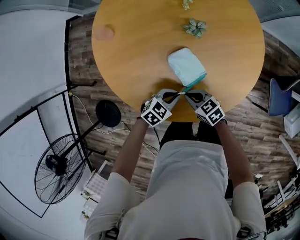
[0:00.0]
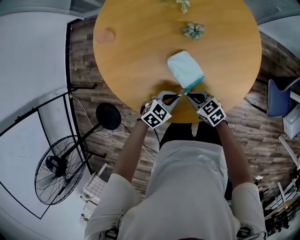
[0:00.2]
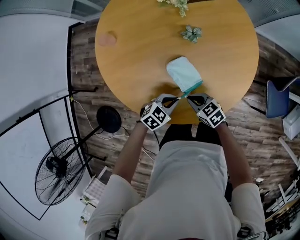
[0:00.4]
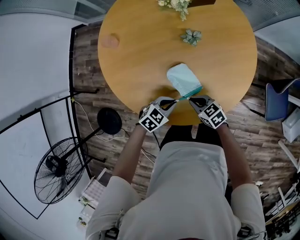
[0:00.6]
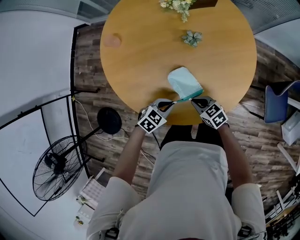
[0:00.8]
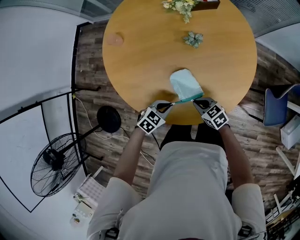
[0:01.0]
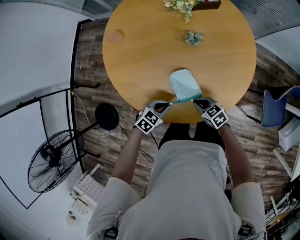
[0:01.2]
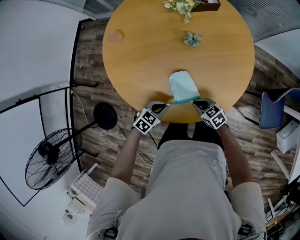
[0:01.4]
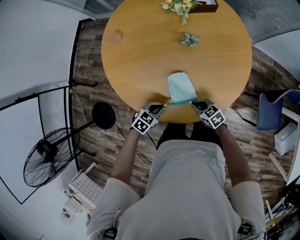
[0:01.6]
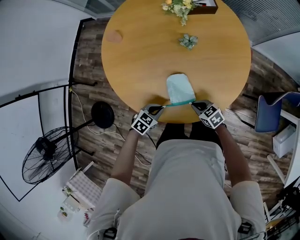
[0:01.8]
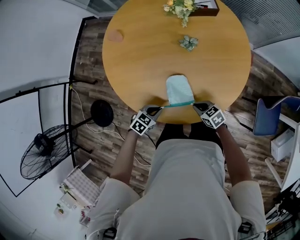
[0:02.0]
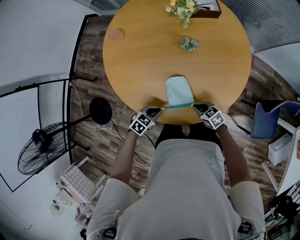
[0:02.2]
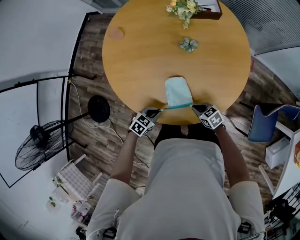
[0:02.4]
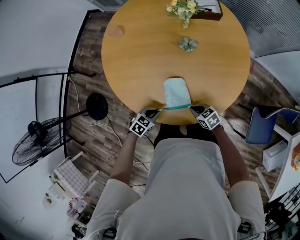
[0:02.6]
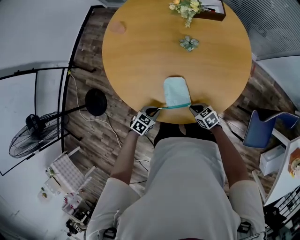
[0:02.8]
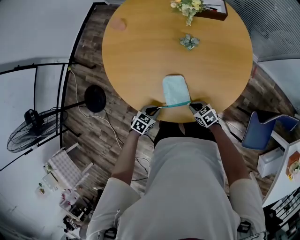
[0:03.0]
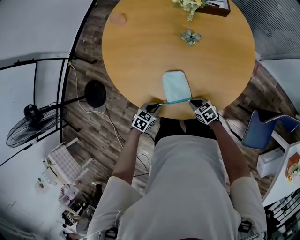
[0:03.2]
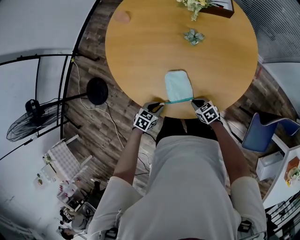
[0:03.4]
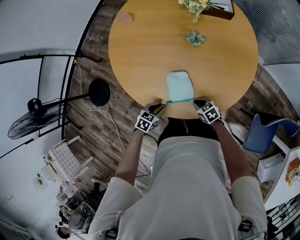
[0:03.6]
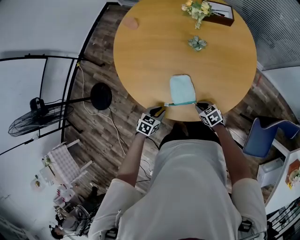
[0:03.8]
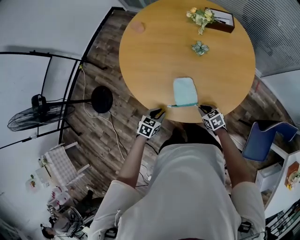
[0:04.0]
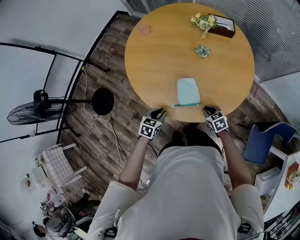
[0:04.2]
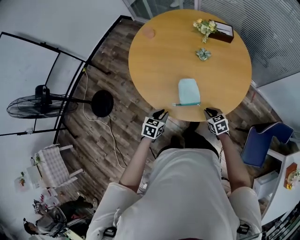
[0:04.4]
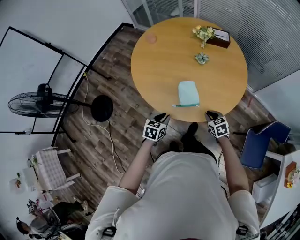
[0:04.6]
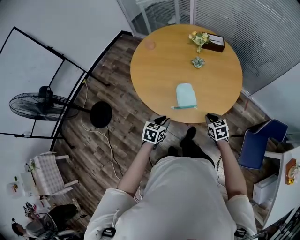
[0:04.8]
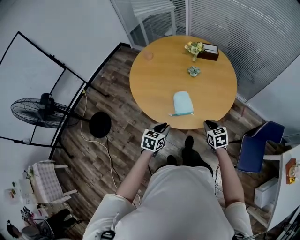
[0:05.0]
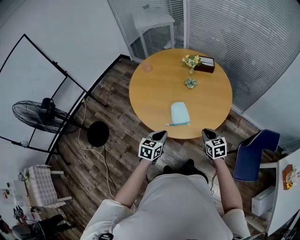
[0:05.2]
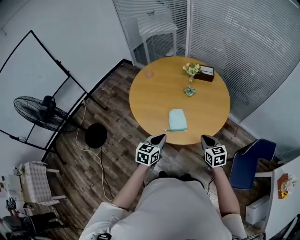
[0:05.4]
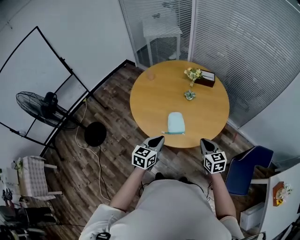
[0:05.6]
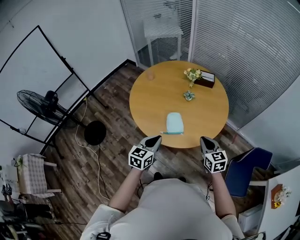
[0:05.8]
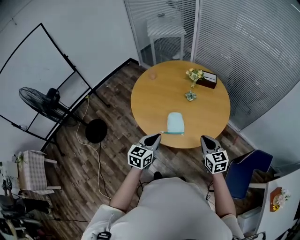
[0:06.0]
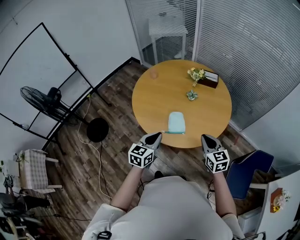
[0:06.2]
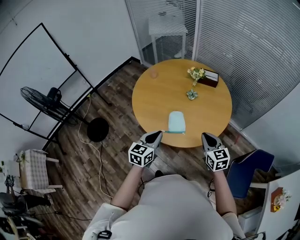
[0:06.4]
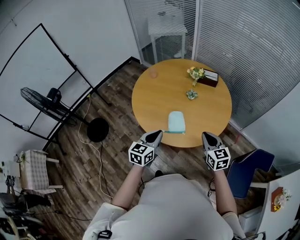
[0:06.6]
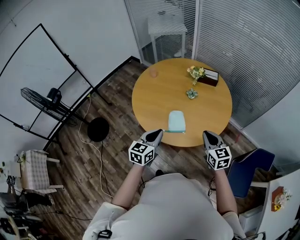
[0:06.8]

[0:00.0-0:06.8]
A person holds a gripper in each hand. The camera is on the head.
0:00.0 to 0:01.4: The right gripper moves some 10 cm. The left gripper ends up about 5 cm from where it was.
0:01.4 to 0:02.8: The left gripper changes place by roughly 5 cm. Meanwhile the right gripper changes place by some 10 cm.
0:02.8 to 0:04.0: The left gripper changes place by some 5 cm.
0:04.0 to 0:05.4: The grippers both shift upward and backward by about 30 cm. The right gripper swivels about 30 degrees. Meanwhile the left gripper changes its angle by roughly 30 degrees.
0:05.4 to 0:06.8: The two grippers go roughly 5 cm upward.

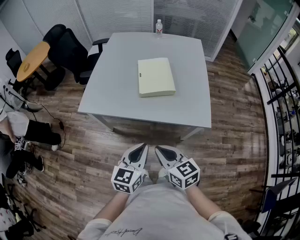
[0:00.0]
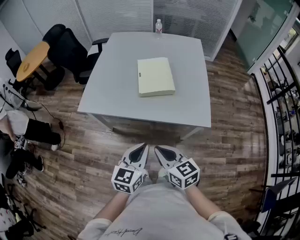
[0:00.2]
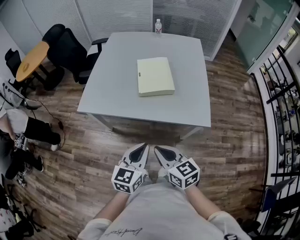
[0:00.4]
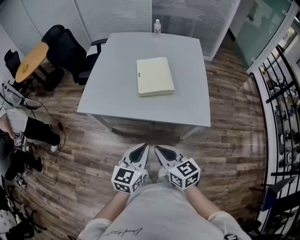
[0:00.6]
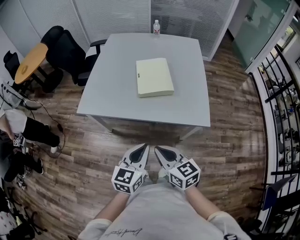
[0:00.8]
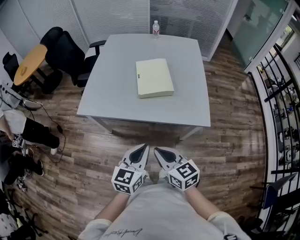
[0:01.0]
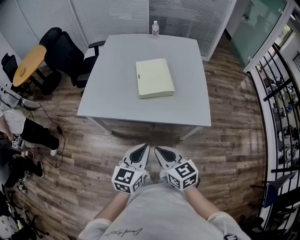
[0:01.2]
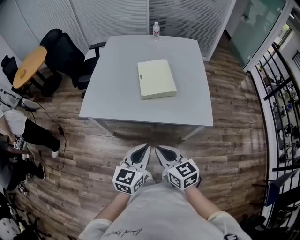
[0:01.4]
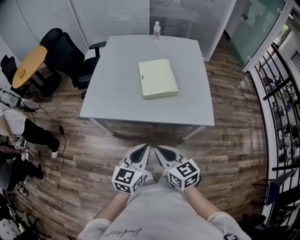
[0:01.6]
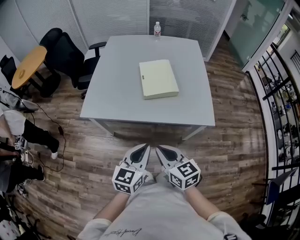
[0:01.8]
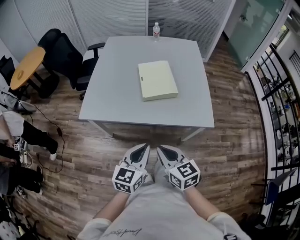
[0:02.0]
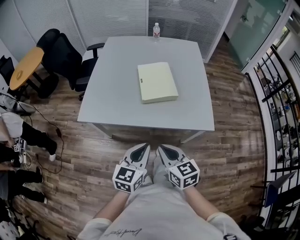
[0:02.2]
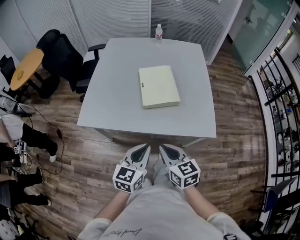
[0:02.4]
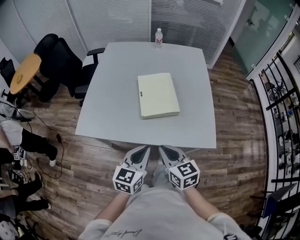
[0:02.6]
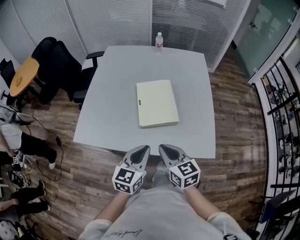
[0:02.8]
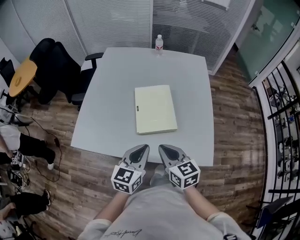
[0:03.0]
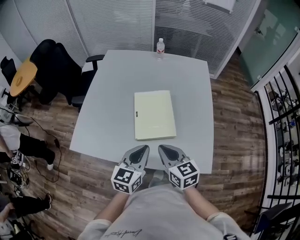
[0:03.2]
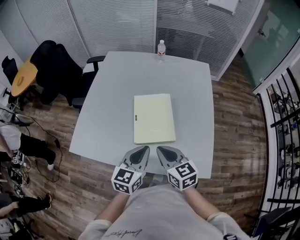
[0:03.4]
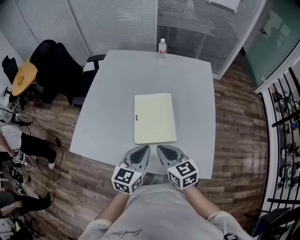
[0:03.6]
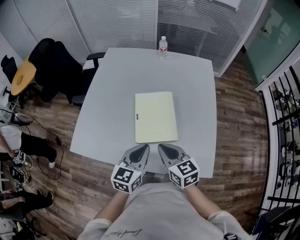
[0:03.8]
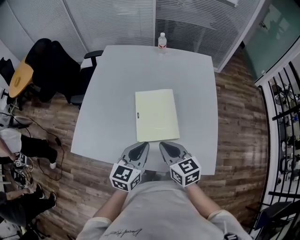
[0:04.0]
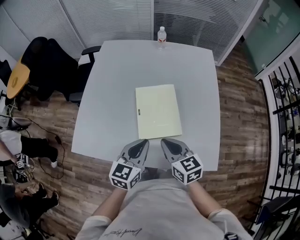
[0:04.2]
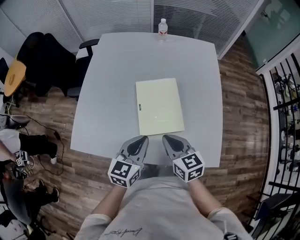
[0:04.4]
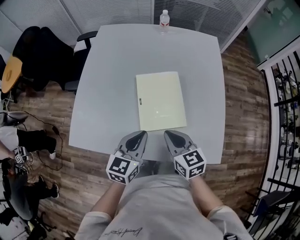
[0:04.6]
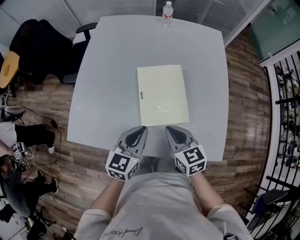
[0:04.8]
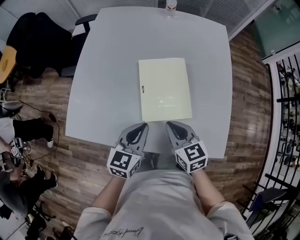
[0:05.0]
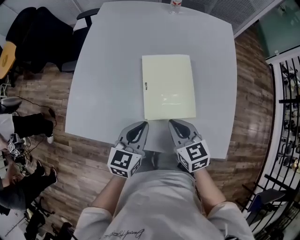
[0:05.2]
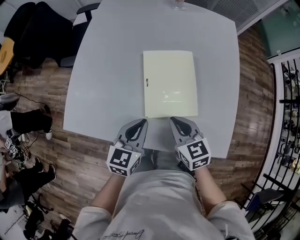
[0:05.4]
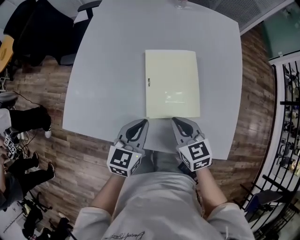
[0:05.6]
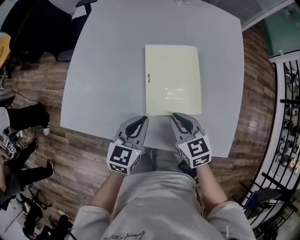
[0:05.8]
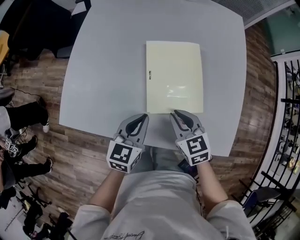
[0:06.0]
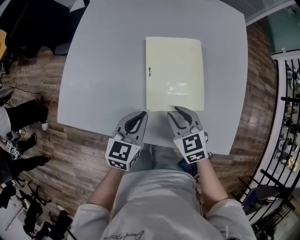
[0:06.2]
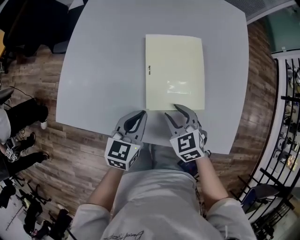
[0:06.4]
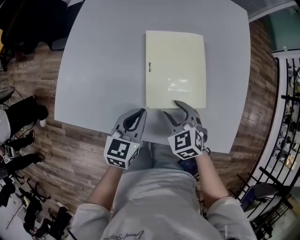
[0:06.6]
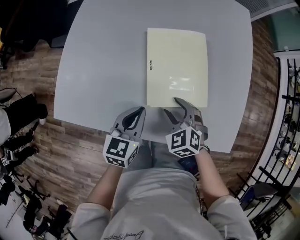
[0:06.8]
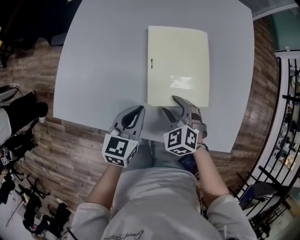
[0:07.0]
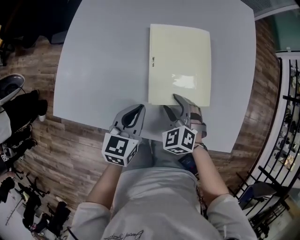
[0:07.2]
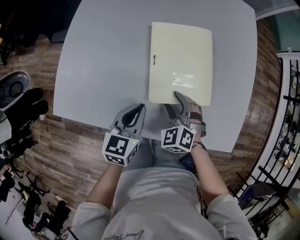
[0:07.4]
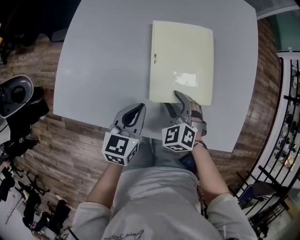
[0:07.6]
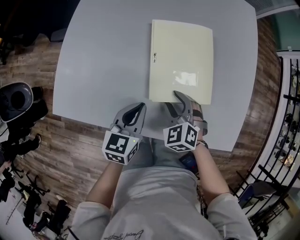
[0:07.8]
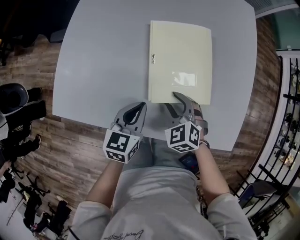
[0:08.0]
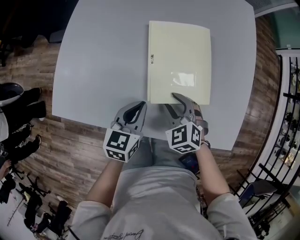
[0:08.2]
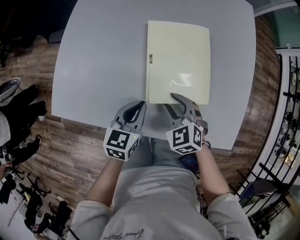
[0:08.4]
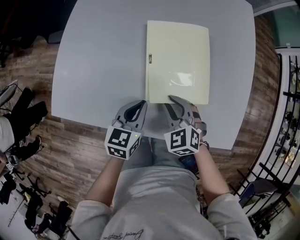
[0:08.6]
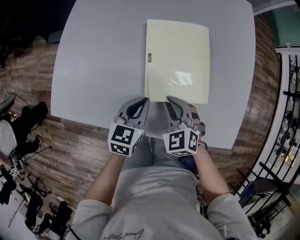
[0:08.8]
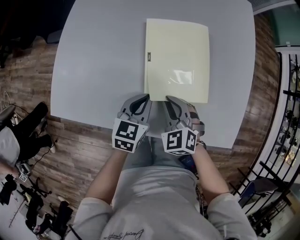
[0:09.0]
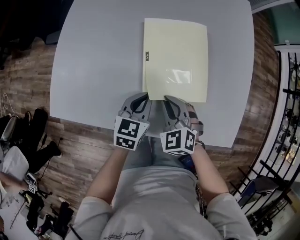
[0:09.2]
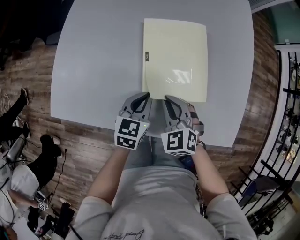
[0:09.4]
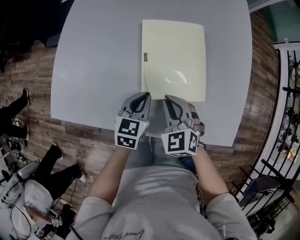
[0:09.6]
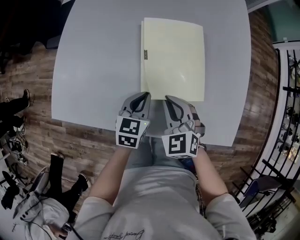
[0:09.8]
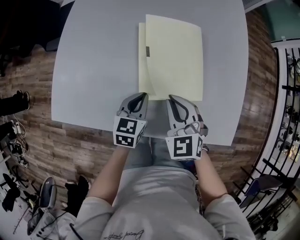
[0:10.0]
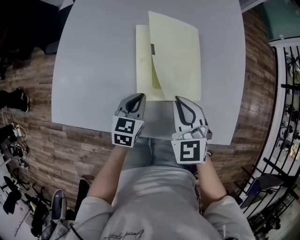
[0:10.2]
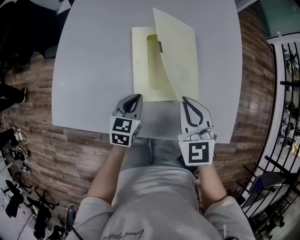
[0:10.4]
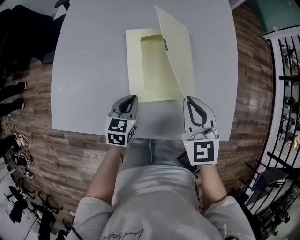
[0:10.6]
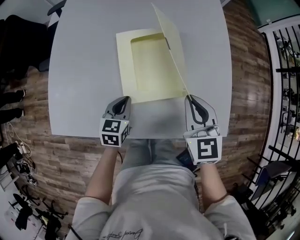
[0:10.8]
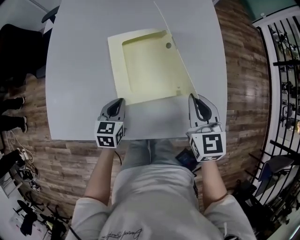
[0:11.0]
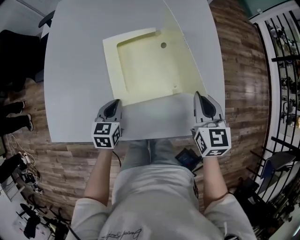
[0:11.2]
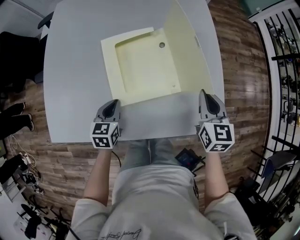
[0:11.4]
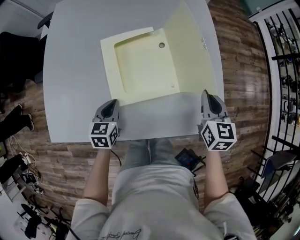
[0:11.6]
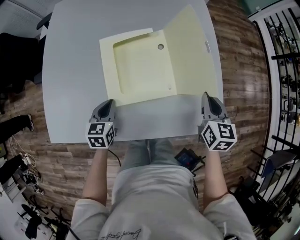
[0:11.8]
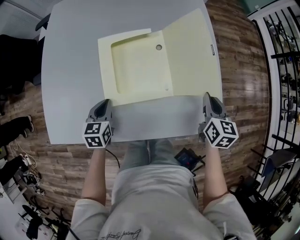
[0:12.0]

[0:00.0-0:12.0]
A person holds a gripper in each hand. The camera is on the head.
0:00.0 to 0:01.6: There are only small adjustments of the grippers.
0:01.6 to 0:03.0: The grippers both shift forward by about 25 cm.
0:03.0 to 0:04.4: The two grippers go some 10 cm forward.
0:04.4 to 0:06.0: The two grippers go roughly 10 cm downward.
0:06.0 to 0:07.6: The right gripper heads downward, covering some 5 cm, turns by roughly 40 degrees, and opens up.
0:07.6 to 0:09.0: The left gripper shifts by about 5 cm. The right gripper closes up.
0:09.0 to 0:10.4: The right gripper shifts some 15 cm upward and to the right, and swivels approximately 30 degrees.
0:10.4 to 0:12.0: The right gripper heads to the right, covering roughly 20 cm, and rotates around the line of its fingers by about 40 degrees, clockwise from behind.

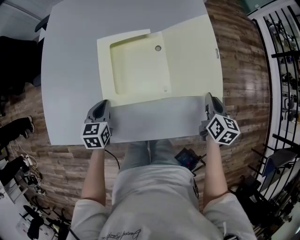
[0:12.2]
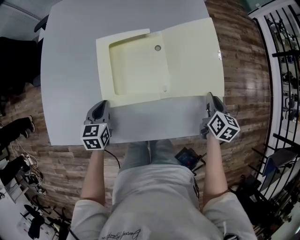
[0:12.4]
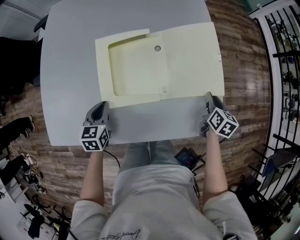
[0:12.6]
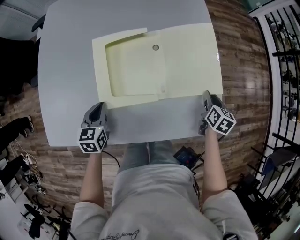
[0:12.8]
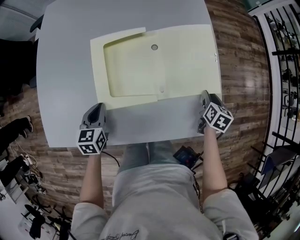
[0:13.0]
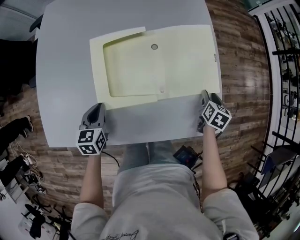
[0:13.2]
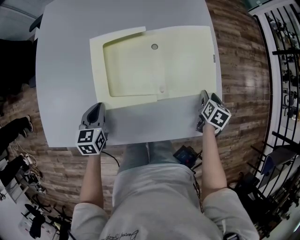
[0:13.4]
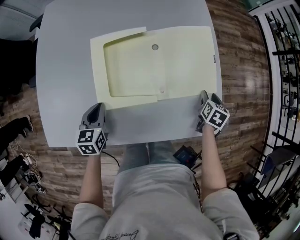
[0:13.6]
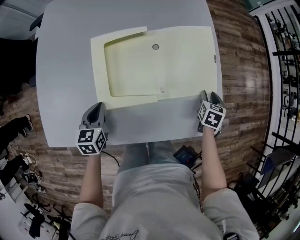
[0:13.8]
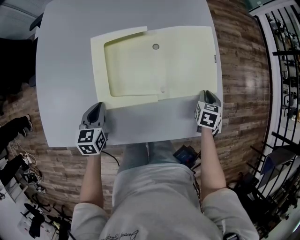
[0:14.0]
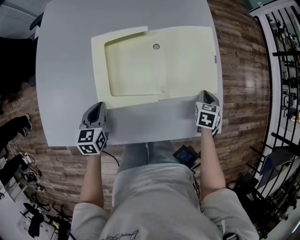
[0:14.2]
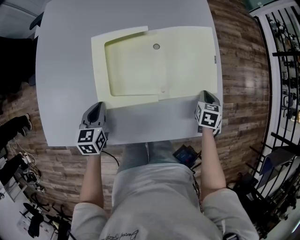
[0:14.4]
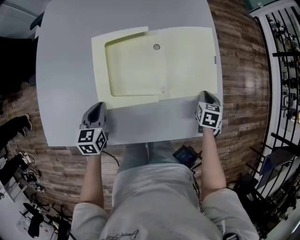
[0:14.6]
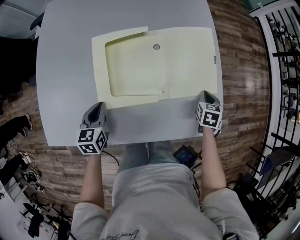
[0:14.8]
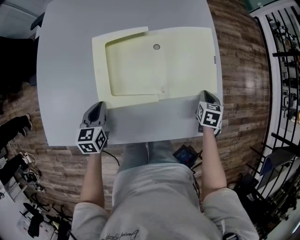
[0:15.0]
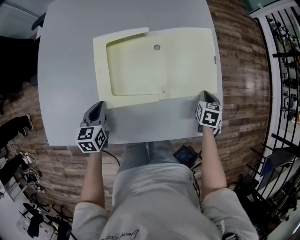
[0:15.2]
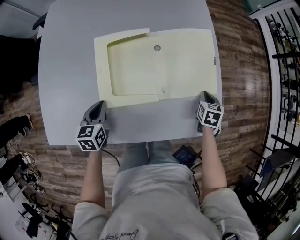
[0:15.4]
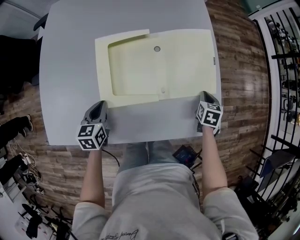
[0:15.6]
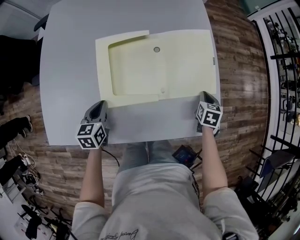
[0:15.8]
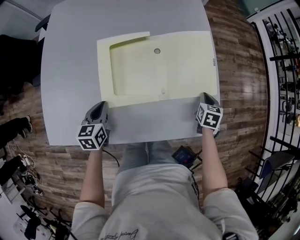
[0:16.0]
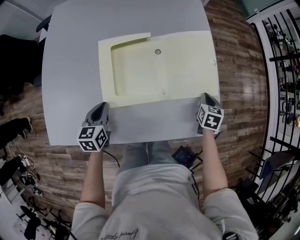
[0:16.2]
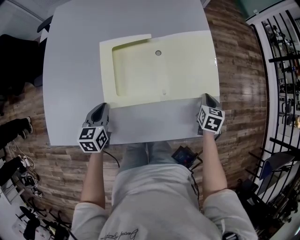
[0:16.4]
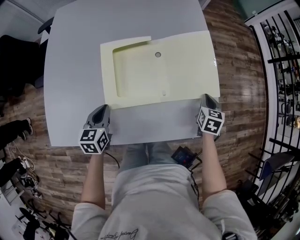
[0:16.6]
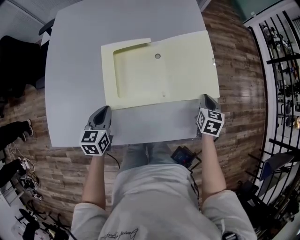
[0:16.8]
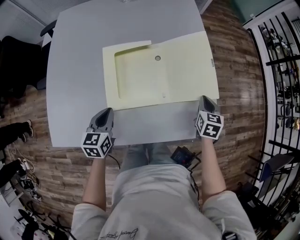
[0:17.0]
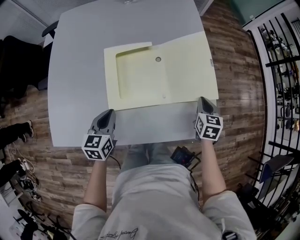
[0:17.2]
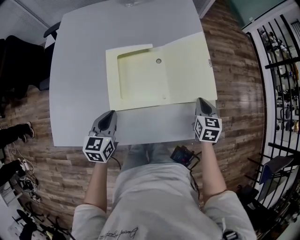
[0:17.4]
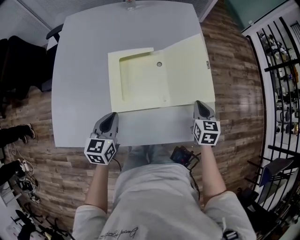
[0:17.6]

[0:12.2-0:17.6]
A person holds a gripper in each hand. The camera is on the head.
0:12.2 to 0:13.6: The right gripper moves downward and to the right, about 10 cm, turns by about 20 degrees, and opens up.
0:13.6 to 0:15.0: The right gripper closes.
0:15.0 to 0:16.2: The grippers move only a little.
0:16.2 to 0:17.6: The right gripper shifts roughly 10 cm upward and to the left; the left gripper moves upward, some 10 cm.
